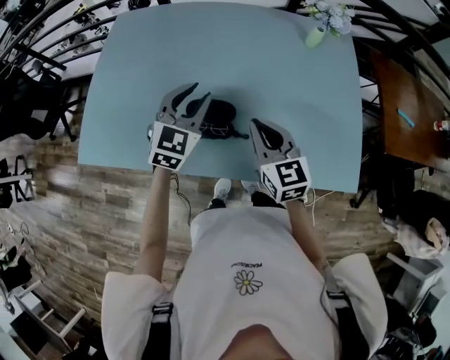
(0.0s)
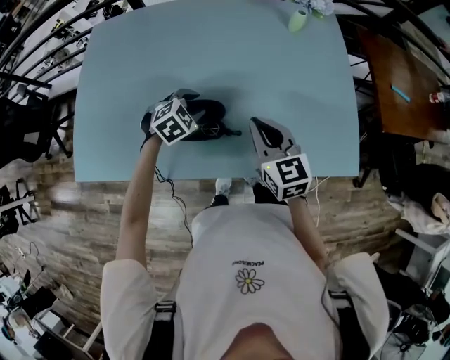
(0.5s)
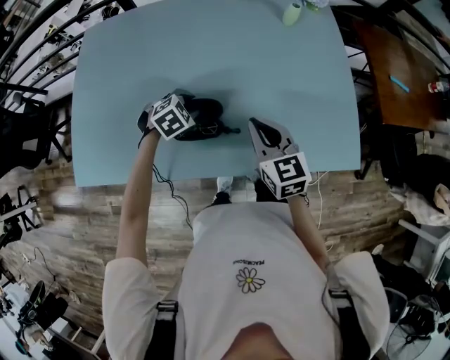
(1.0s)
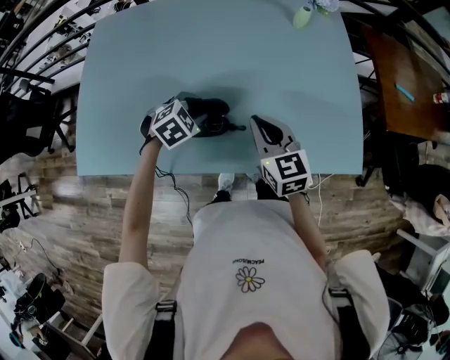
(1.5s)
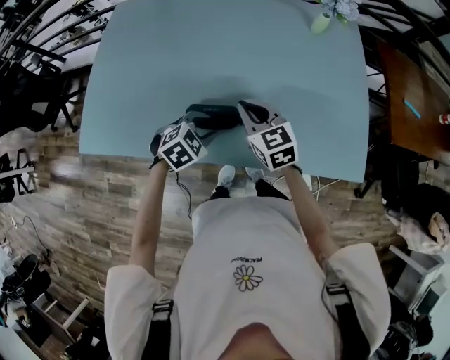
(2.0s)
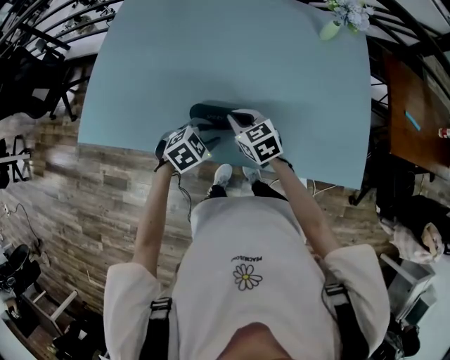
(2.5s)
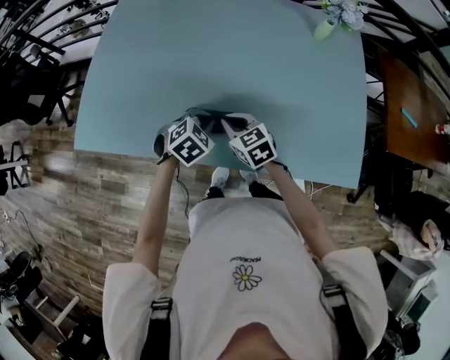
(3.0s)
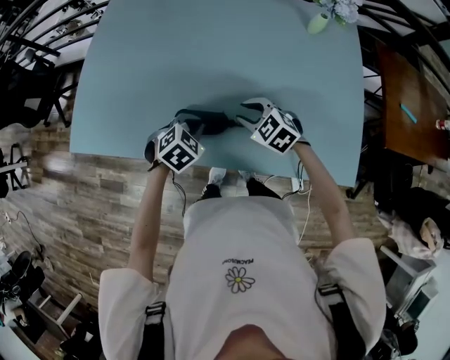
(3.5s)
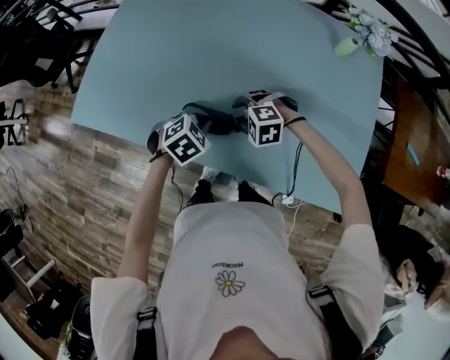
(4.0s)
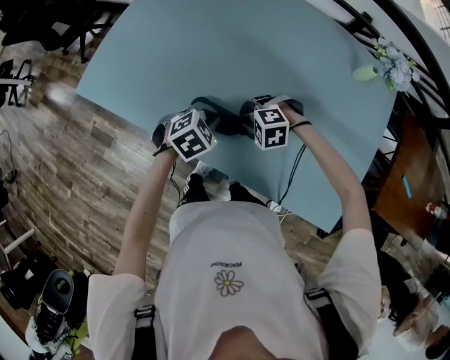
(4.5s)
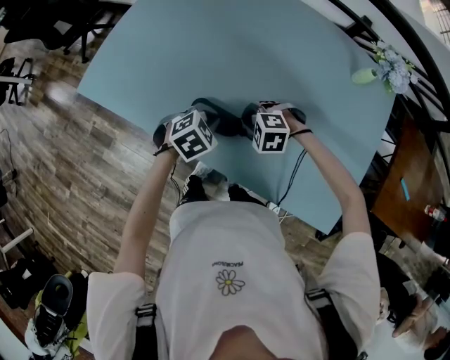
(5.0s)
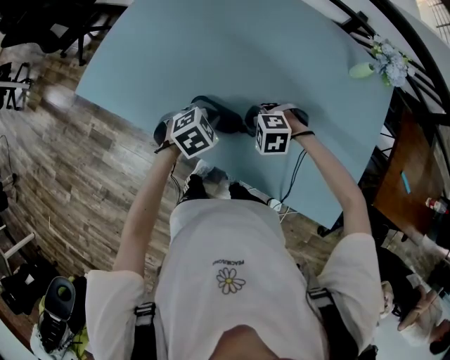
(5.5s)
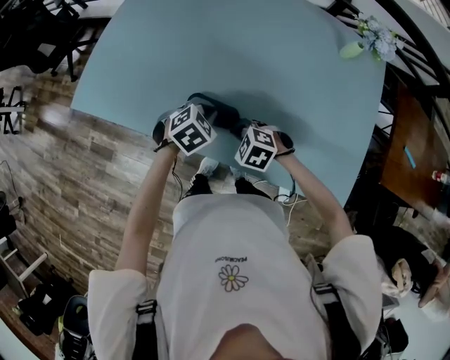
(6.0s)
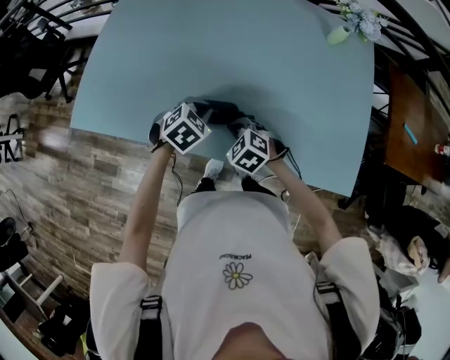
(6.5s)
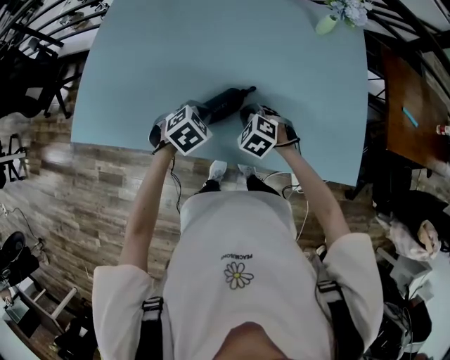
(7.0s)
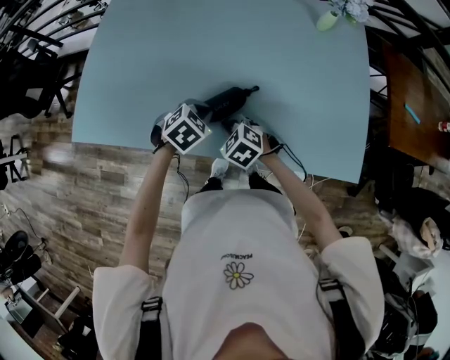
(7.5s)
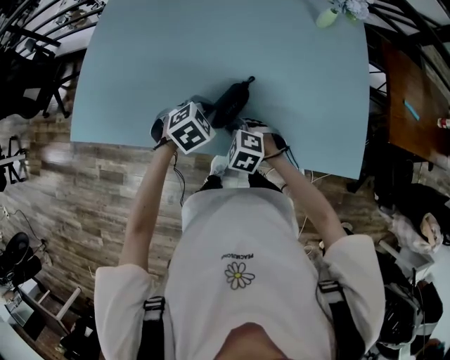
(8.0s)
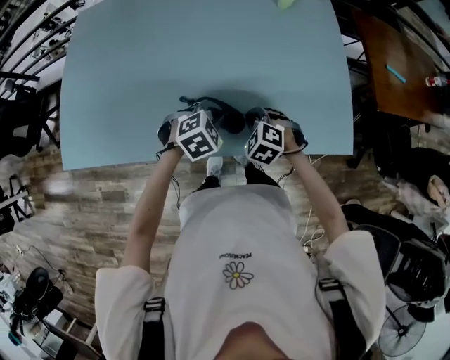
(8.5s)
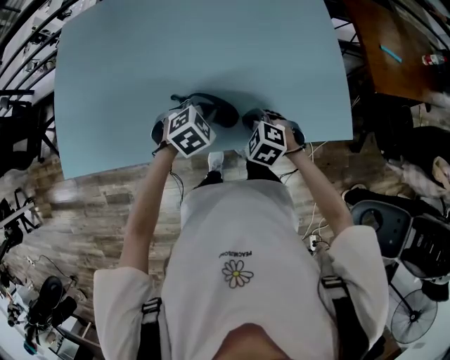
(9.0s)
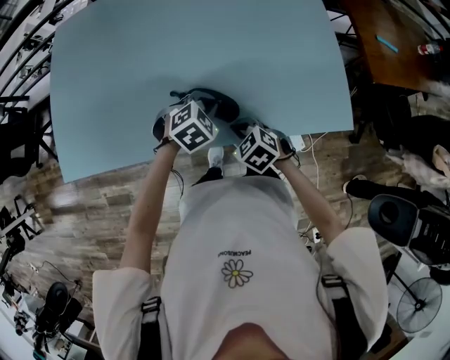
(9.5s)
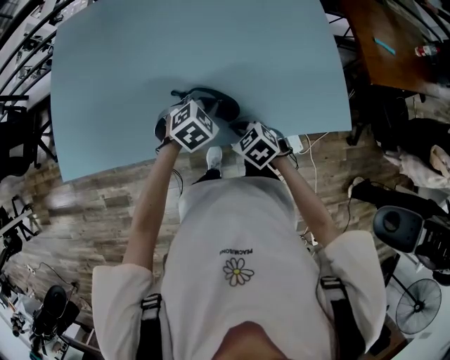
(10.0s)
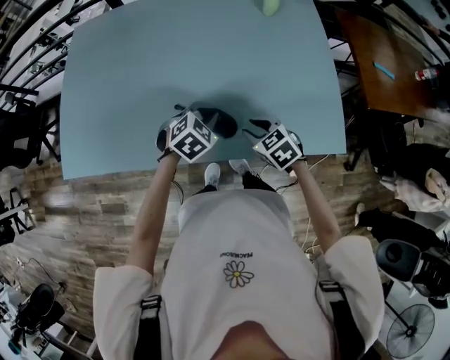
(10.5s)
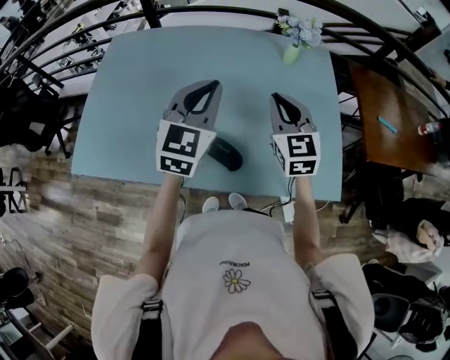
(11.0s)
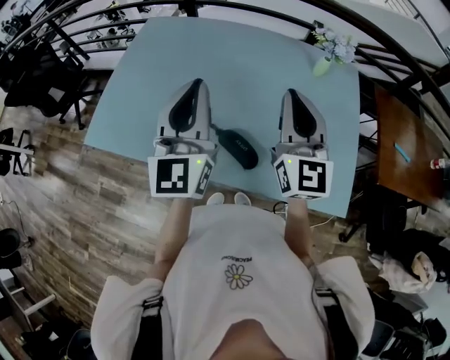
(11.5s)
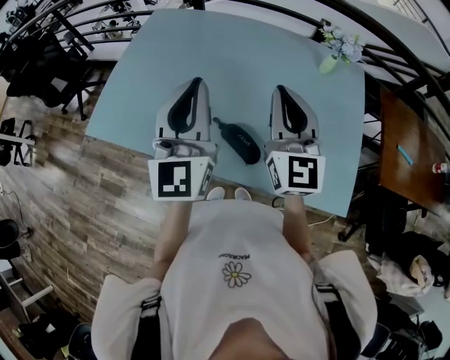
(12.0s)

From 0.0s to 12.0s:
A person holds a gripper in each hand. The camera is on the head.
From 0.0s to 2.0s: The left gripper moves downward and backward, roughly 20 cm, and points its fingers roughly 40 degrees further downward. Meanwhile the right gripper is displaced downward by approximately 5 cm.
From 2.0s to 4.0s: The right gripper moves downward, roughly 15 cm, tilts its fingers roughly 40 degrees downward, and opens its fingers. The left gripper closes up.
From 4.0s to 6.0s: The right gripper ends up roughly 10 cm from where it was, turns by approximately 30 degrees, and closes up.
From 8.0s to 10.0s: Both grippers move to the right, approximately 10 cm. The right gripper changes its angle by some 40 degrees.
From 10.0s to 12.0s: Both grippers move upward, roughly 35 cm. The left gripper points its fingers roughly 70 degrees further upward. Meanwhile the right gripper angles its fingers upward, by about 70 degrees, and opens and closes again.

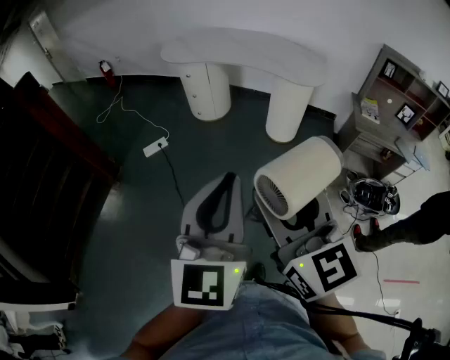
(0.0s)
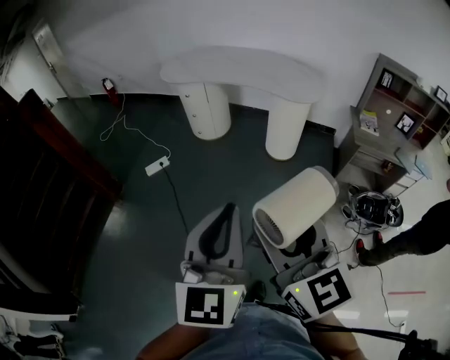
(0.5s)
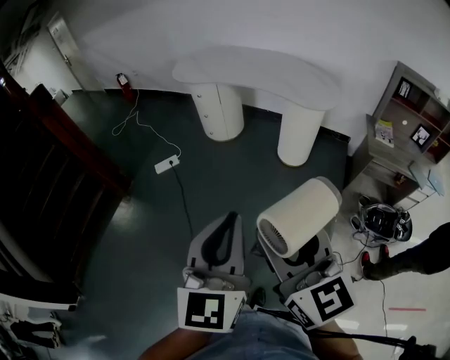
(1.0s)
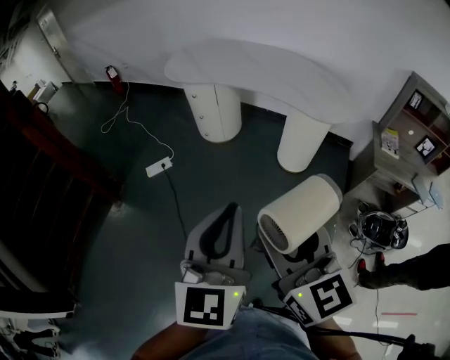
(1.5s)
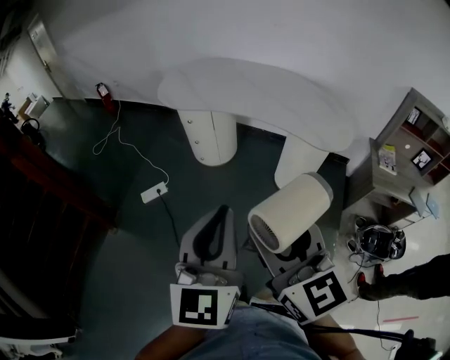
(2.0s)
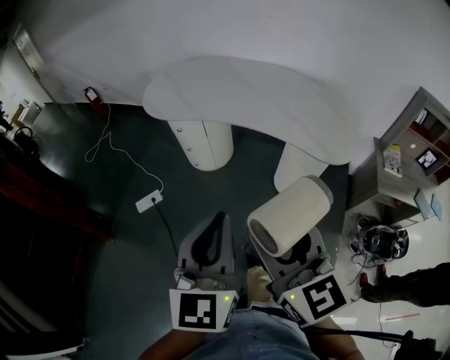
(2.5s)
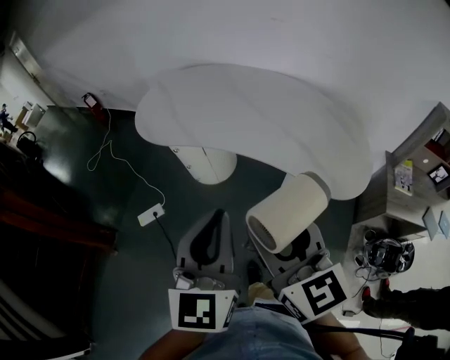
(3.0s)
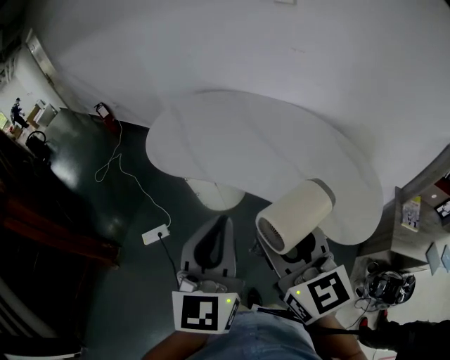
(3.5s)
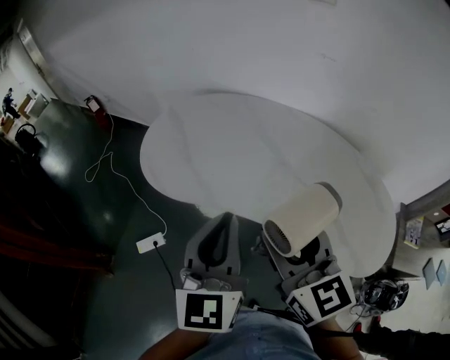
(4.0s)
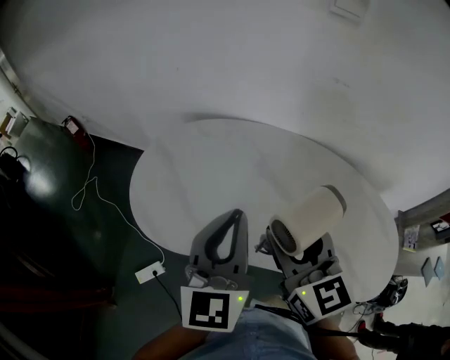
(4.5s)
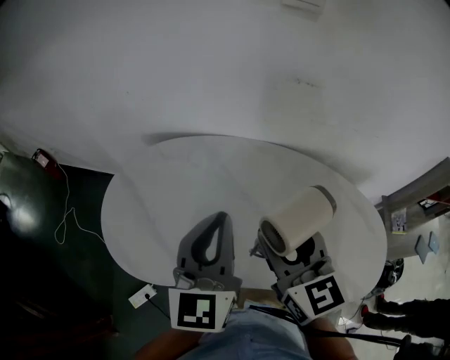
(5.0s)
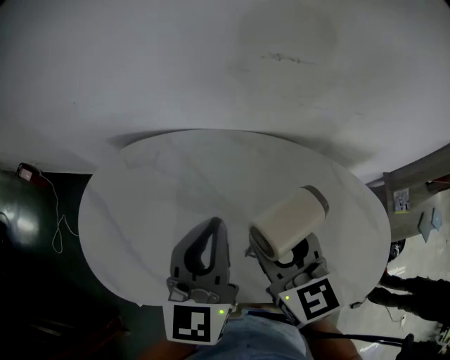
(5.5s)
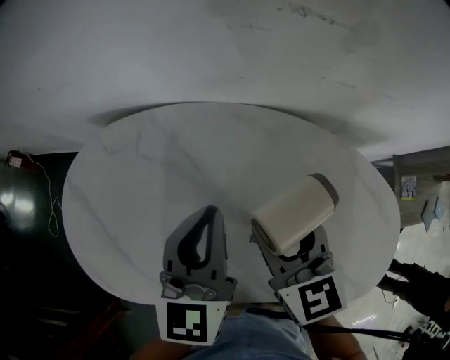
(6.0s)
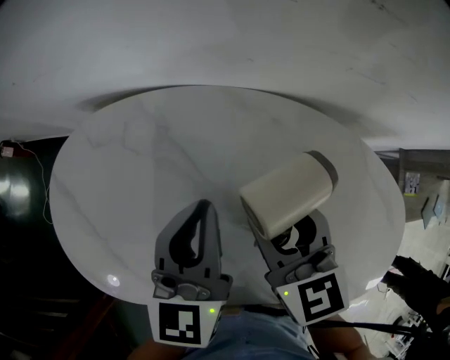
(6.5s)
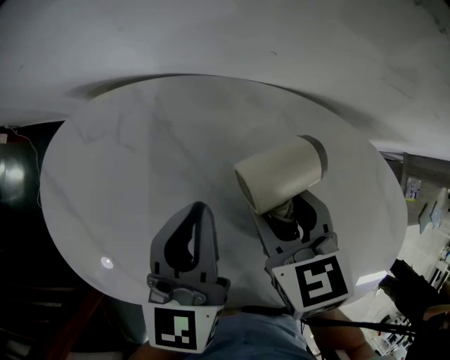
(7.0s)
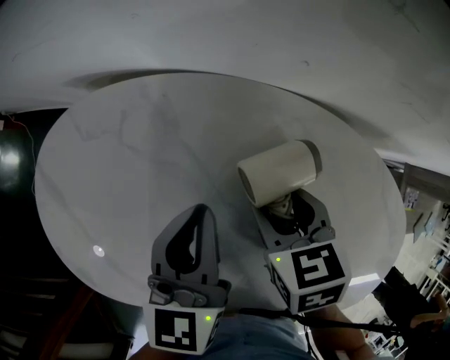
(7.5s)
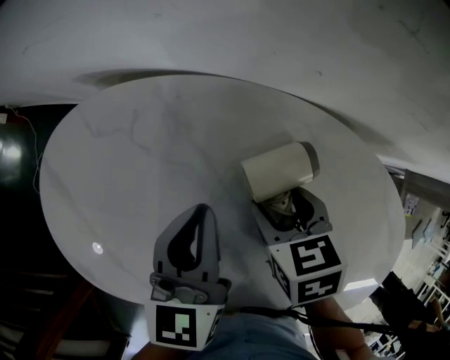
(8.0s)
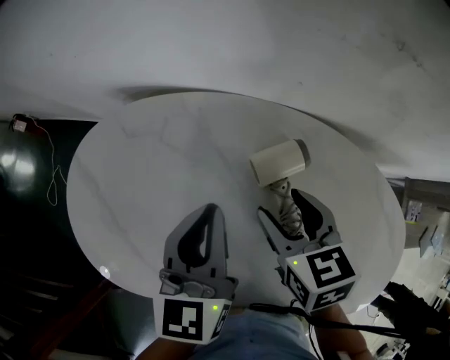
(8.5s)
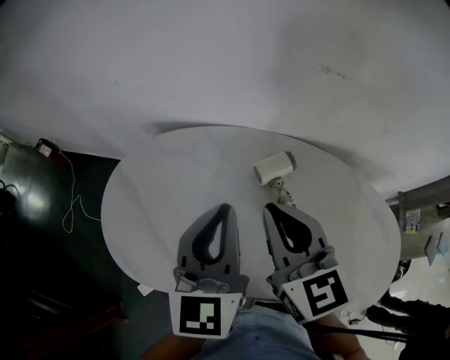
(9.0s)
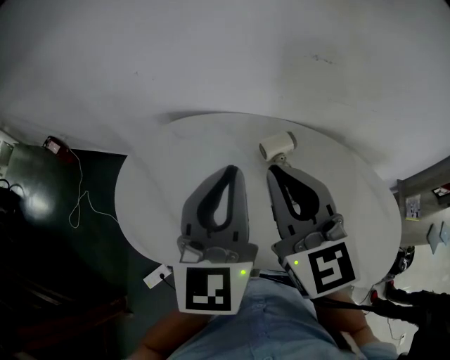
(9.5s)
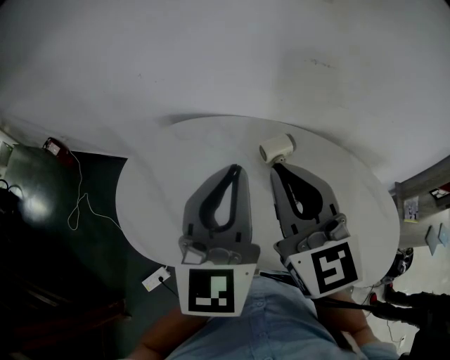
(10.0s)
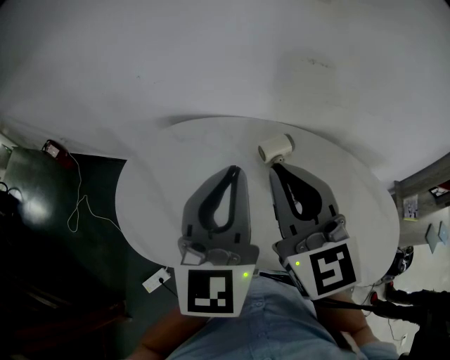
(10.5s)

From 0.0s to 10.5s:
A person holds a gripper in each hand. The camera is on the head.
From 0.0s to 2.0s: Both grippers move forward, approximately 30 cm.
From 2.0s to 4.0s: The pair of grippers is taken forward, approximately 50 cm.
From 4.0s to 6.5s: Both grippers travel together forward and downward, approximately 40 cm. The right gripper rotates about 30 degrees, while the left gripper rotates roughly 30 degrees.
From 6.5s to 8.5s: The right gripper moves about 10 cm downward and comes back. Meanwhile the left gripper moves to the left, some 5 cm.
From 8.5s to 10.5s: The two grippers go approximately 25 cm upward and backward. The right gripper angles its fingers upward, by roughly 40 degrees, and closes its fingers; the left gripper turns by about 30 degrees.

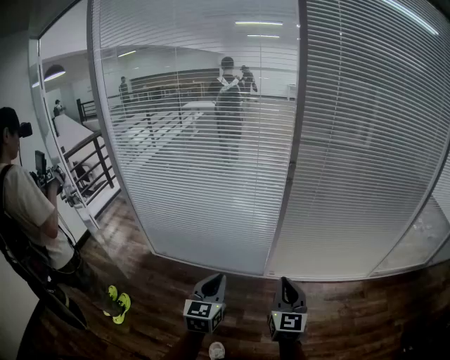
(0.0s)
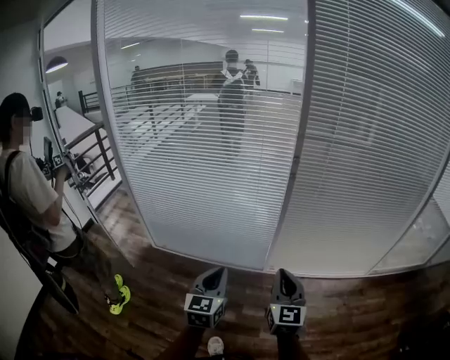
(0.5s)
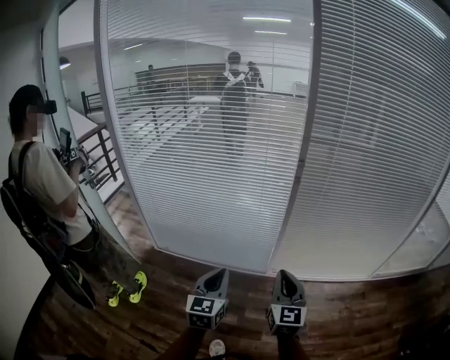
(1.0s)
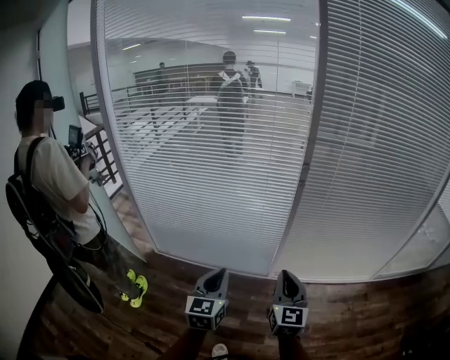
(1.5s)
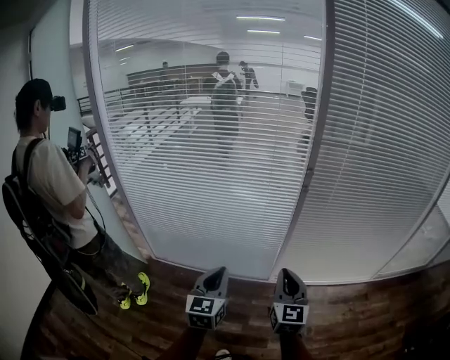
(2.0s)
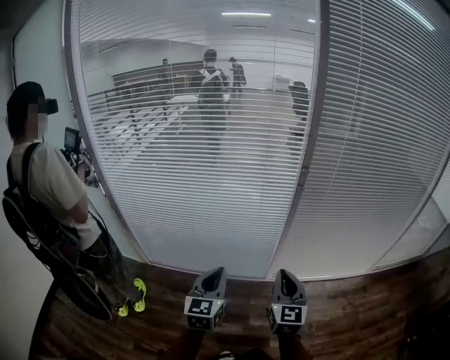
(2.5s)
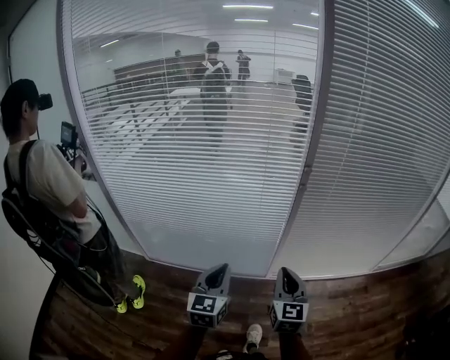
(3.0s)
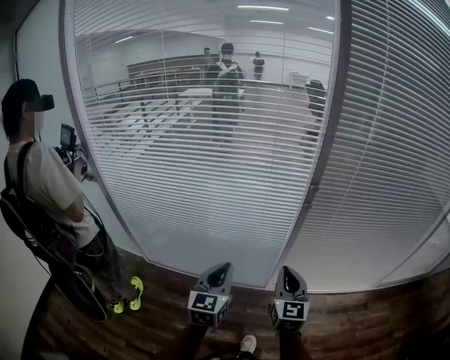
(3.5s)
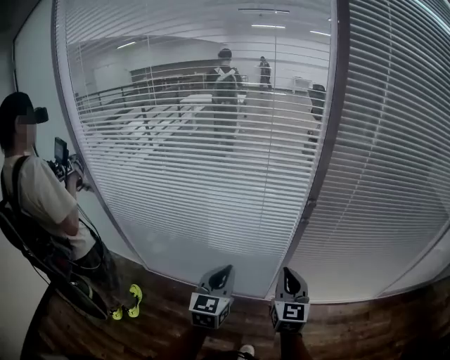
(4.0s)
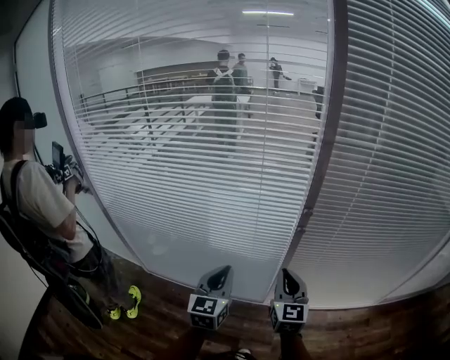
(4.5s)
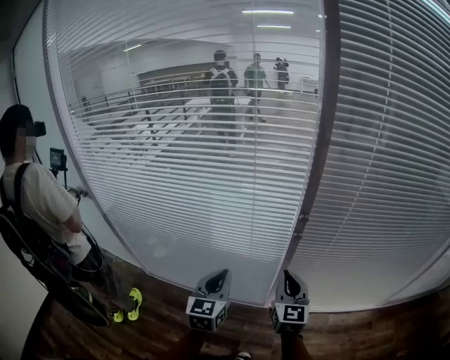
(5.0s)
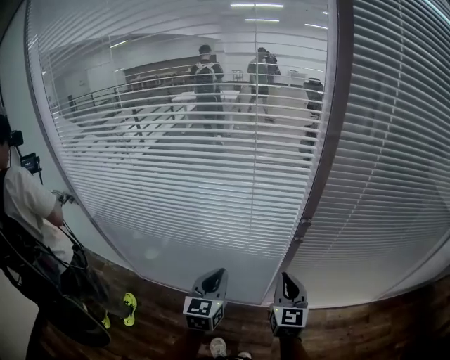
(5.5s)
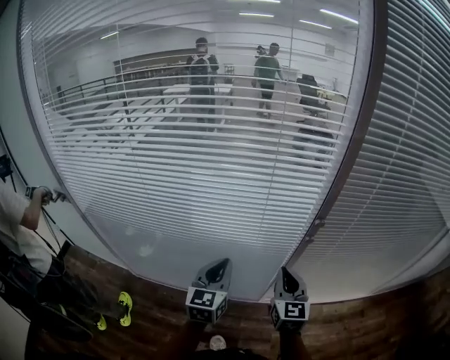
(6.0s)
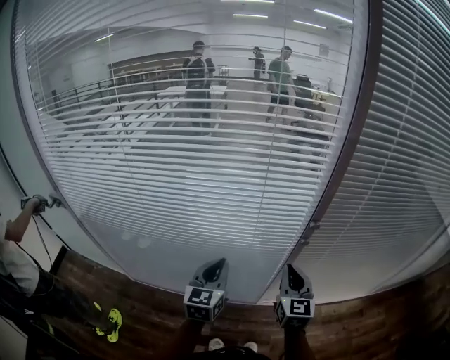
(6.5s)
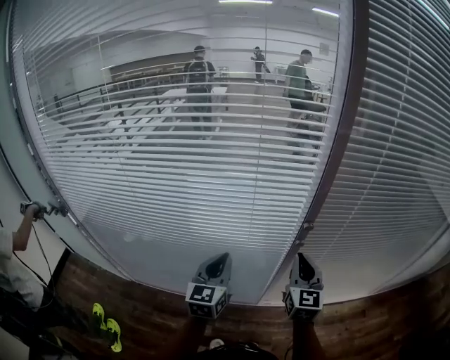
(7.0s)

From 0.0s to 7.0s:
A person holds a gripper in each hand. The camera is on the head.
From 0.0s to 2.0s: Both grippers travel together forward and to the left, roughly 10 cm.
From 2.0s to 3.5s: The left gripper goes some 5 cm forward and to the right, while the right gripper moves forward, roughly 5 cm.
From 3.5s to 5.0s: Both grippers move forward, approximately 10 cm.
From 5.0s to 7.0s: The left gripper shifts some 10 cm forward, while the right gripper heads forward and upward, covering about 10 cm.
